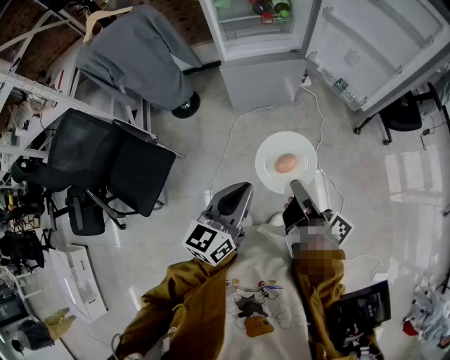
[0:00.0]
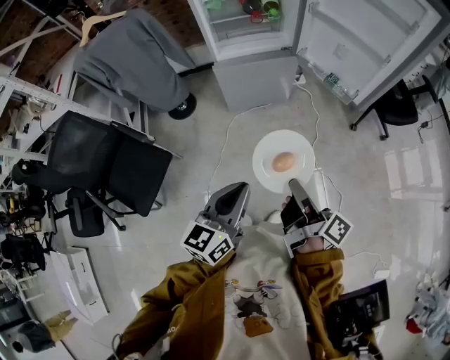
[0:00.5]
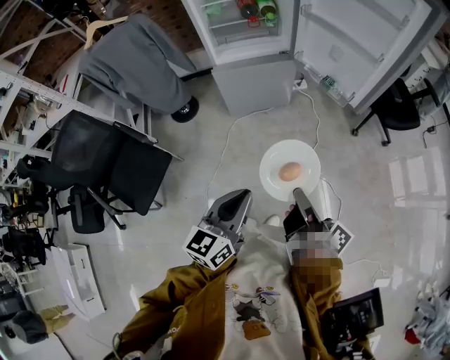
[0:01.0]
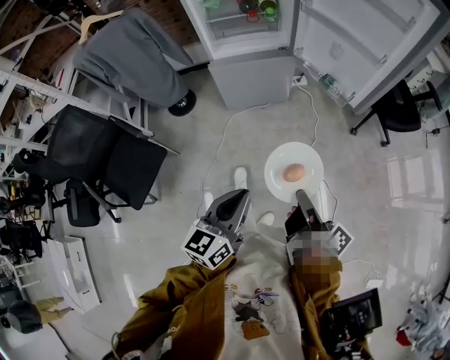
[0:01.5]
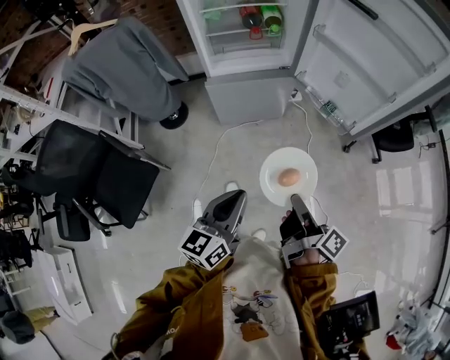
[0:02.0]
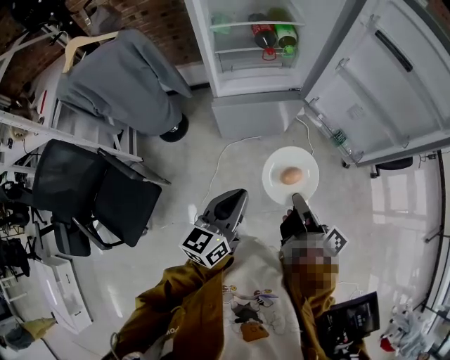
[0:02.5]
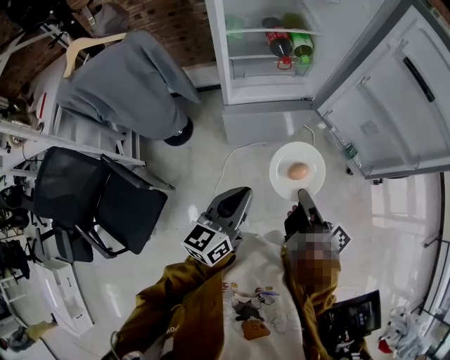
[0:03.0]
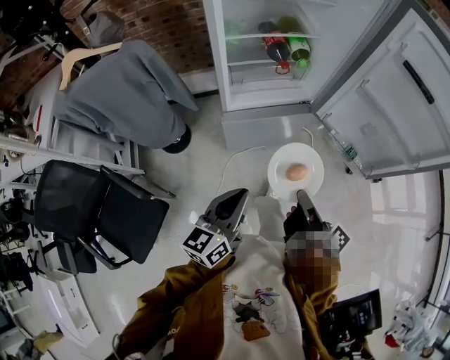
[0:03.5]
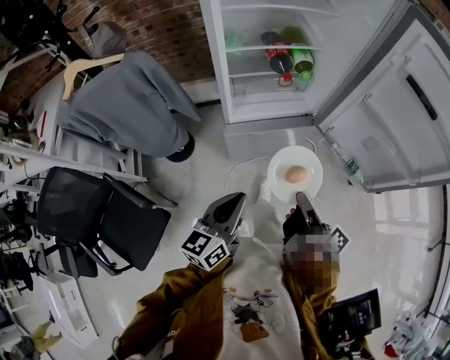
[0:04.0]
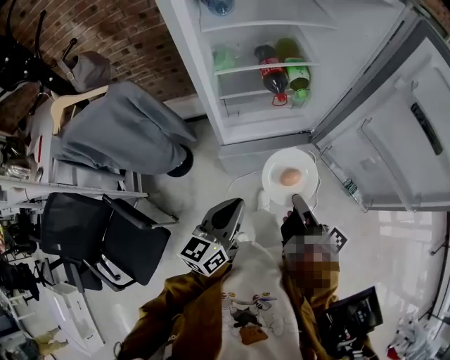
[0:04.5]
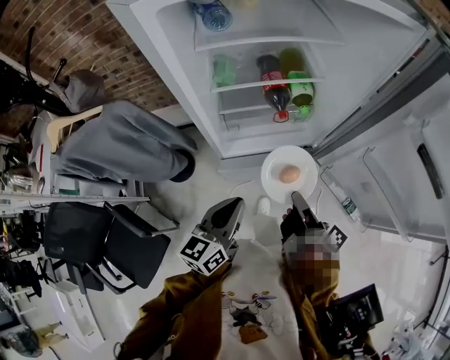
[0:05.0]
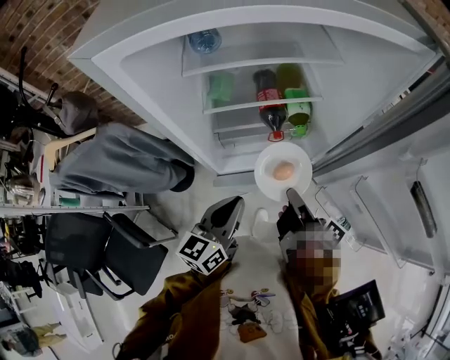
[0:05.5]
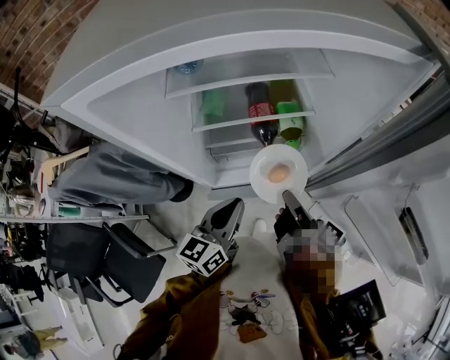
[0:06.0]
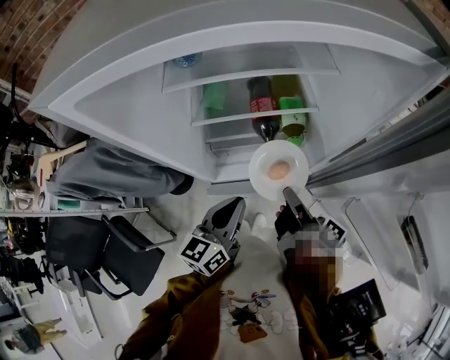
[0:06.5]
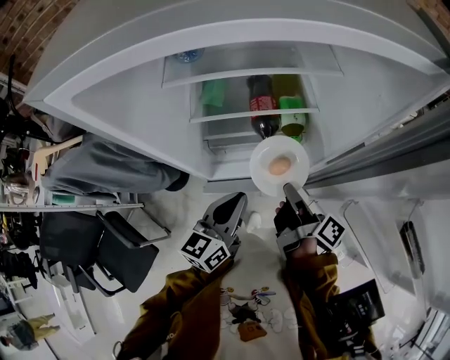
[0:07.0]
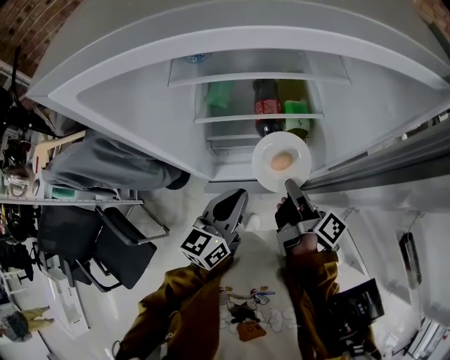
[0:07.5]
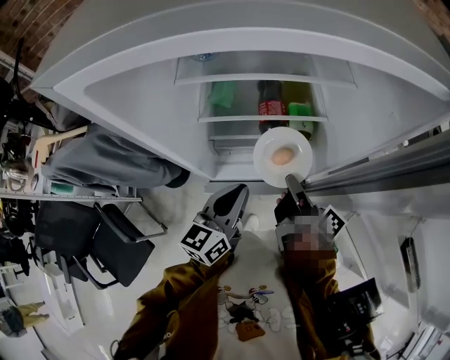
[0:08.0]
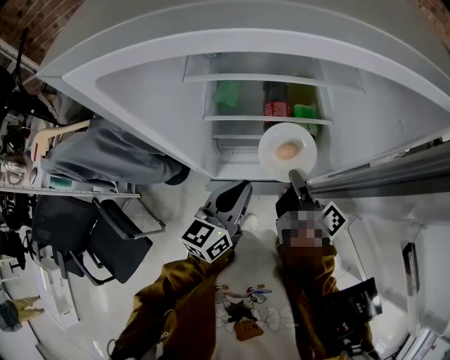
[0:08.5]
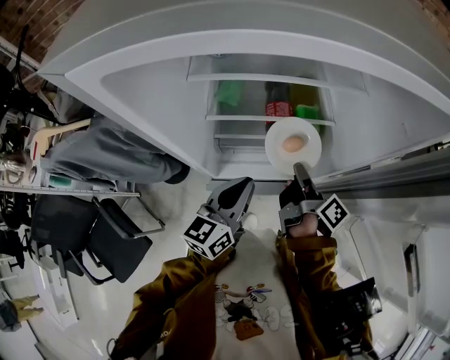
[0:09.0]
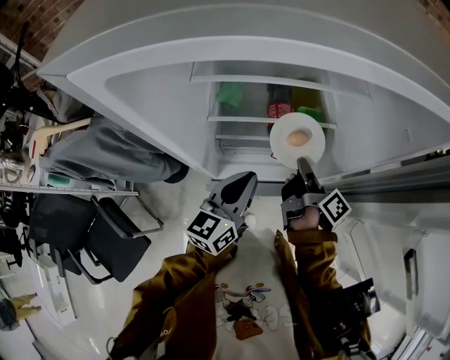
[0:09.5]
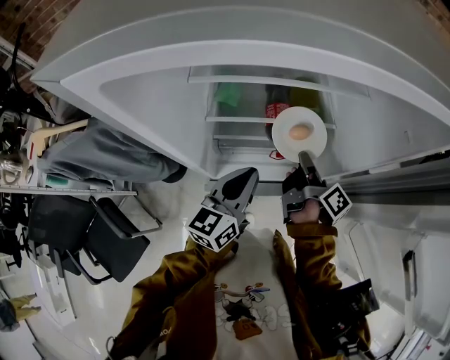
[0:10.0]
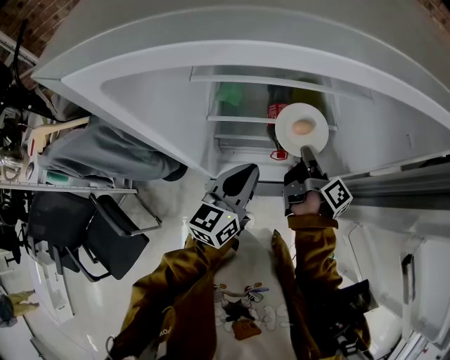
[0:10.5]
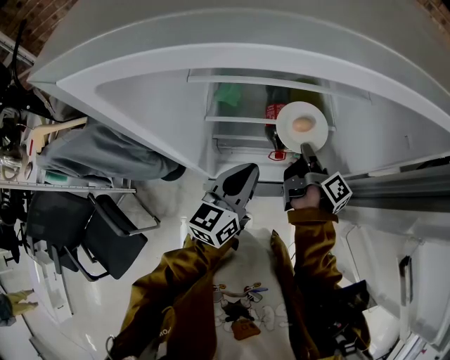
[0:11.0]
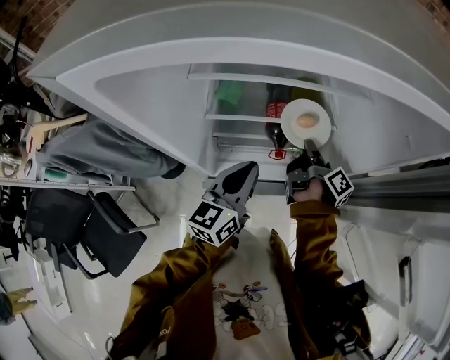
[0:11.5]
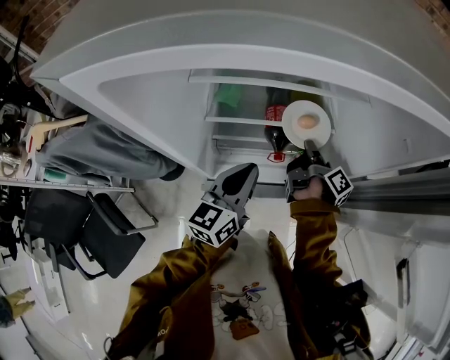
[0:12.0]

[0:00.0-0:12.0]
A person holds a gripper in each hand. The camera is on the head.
0:00.0 to 0:02.0: The left gripper changes place by roughly 10 cm.
0:02.0 to 0:04.0: The left gripper moves roughly 30 cm.
0:04.0 to 0:06.0: The left gripper changes place by some 30 cm.

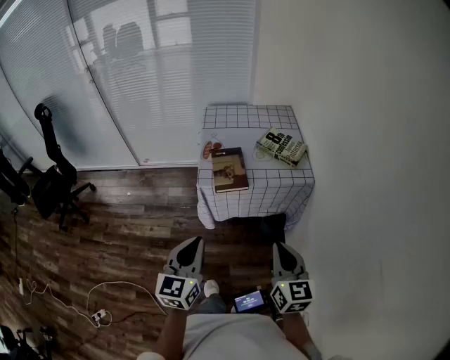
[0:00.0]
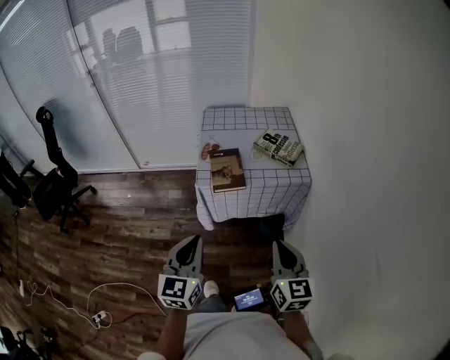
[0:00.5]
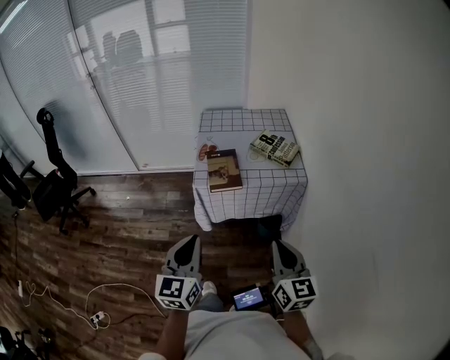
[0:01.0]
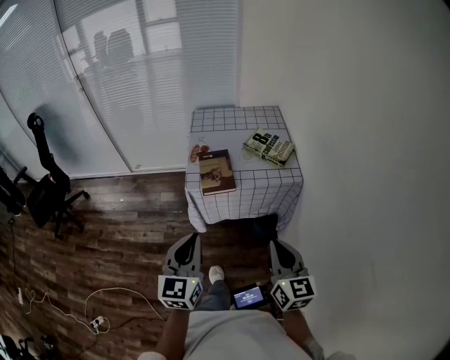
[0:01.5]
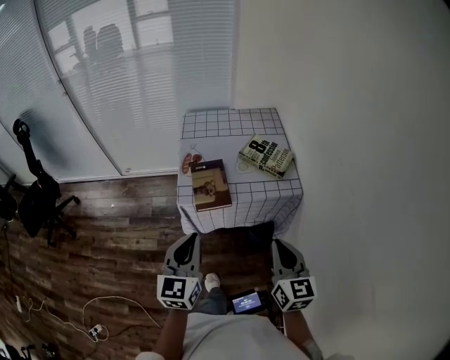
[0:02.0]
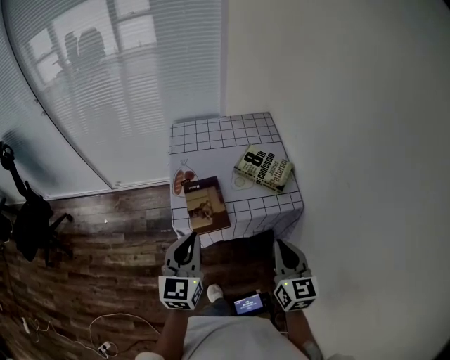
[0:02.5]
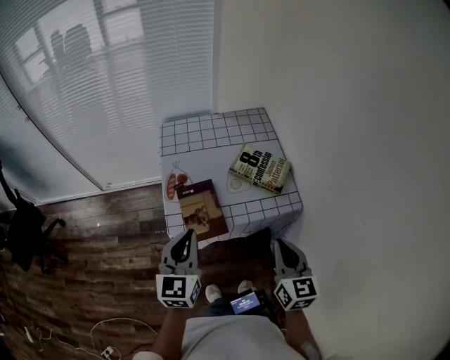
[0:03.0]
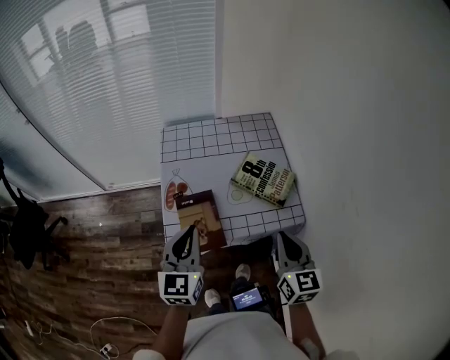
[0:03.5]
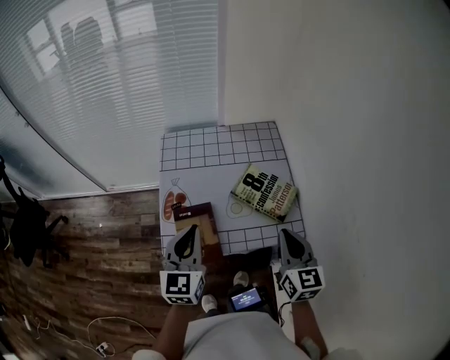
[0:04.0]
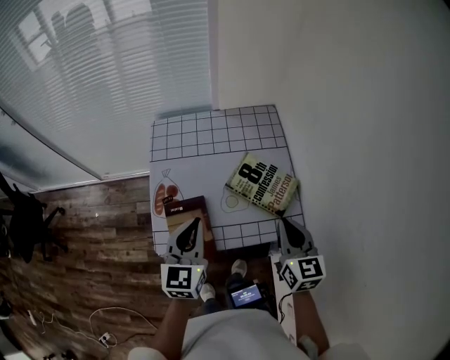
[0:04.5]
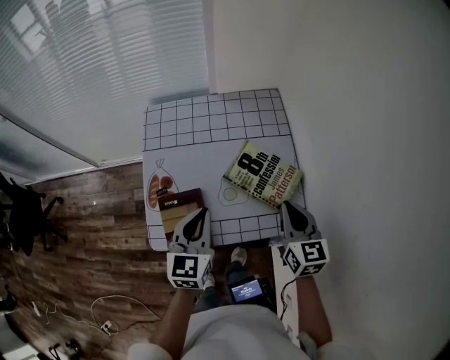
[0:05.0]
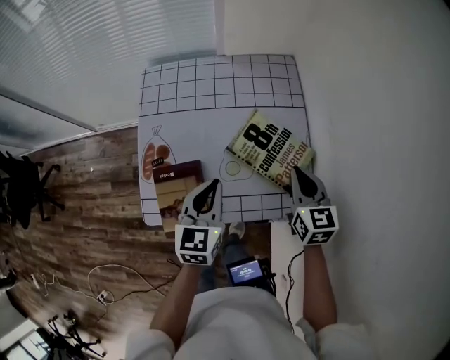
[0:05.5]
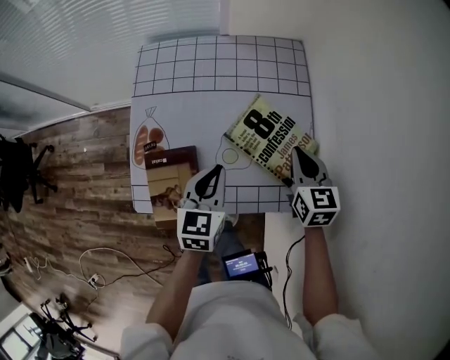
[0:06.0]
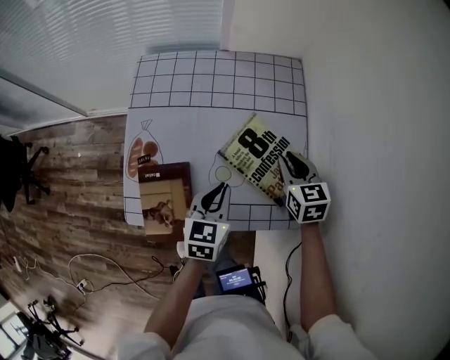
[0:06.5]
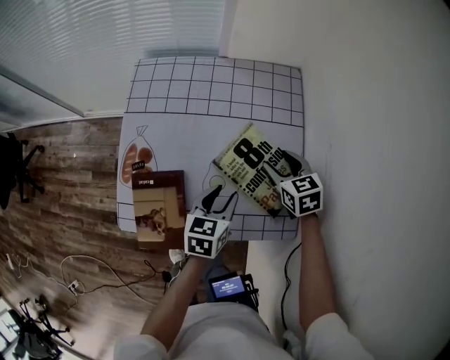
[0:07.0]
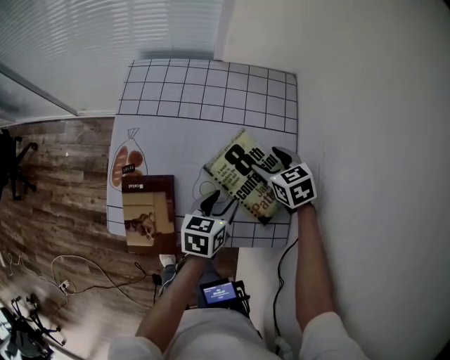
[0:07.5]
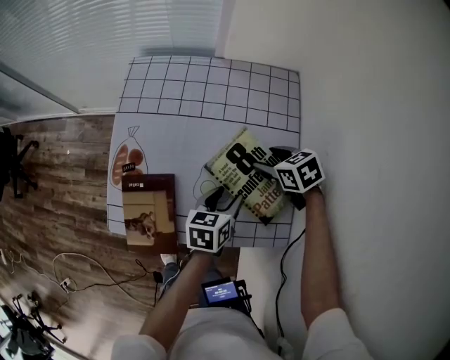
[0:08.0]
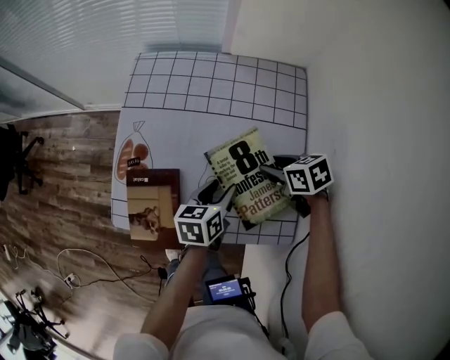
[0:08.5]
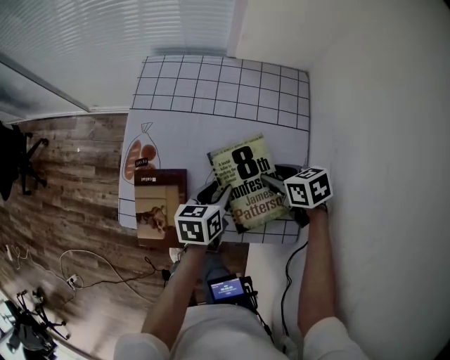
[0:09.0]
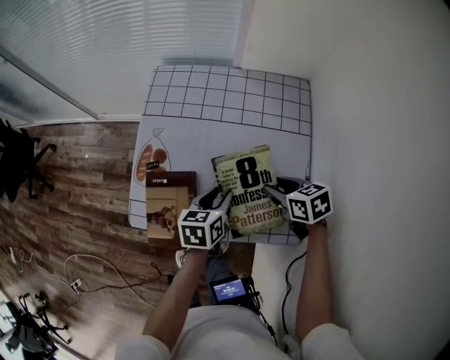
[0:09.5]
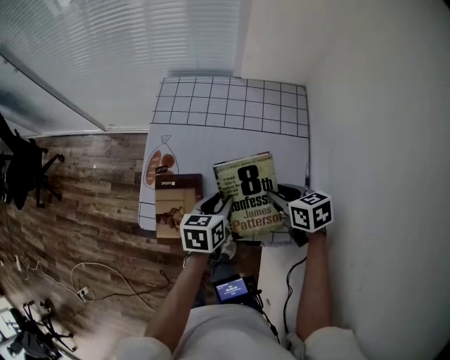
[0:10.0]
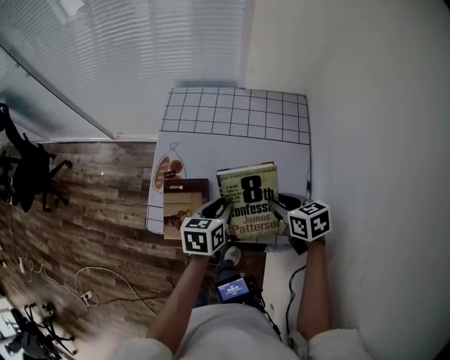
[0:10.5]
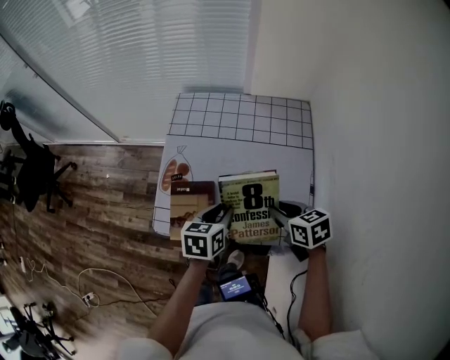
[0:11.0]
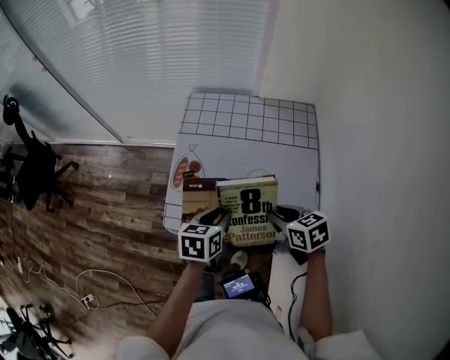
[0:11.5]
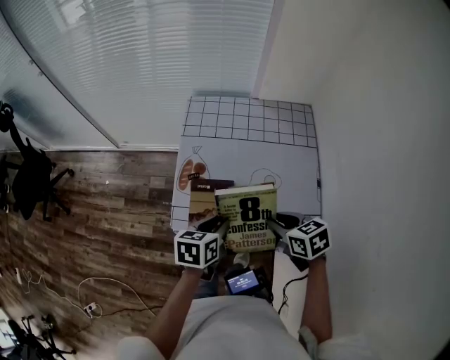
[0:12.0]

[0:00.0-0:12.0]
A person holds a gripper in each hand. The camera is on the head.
0:00.0 to 0:02.0: The two grippers go about 10 cm forward.
0:02.0 to 0:04.0: Both grippers travel together forward, approximately 30 cm.
0:04.0 to 0:06.0: The left gripper travels downward, to the right and forward by about 20 cm, and changes its angle by roughly 20 degrees, while the right gripper shifts approximately 25 cm forward and downward.
0:06.0 to 0:08.0: The left gripper is displaced to the right and downward by roughly 15 cm, rotates approximately 30 degrees, and opens its fingers, while the right gripper moves downward and forward, roughly 15 cm, swivels about 40 degrees, and opens.
0:08.0 to 0:10.0: The right gripper goes some 15 cm backward, upward and to the left, and closes up. The left gripper is displaced to the left and upward by approximately 10 cm.
0:10.0 to 0:12.0: The grippers both shift to the left, backward and upward by about 15 cm.

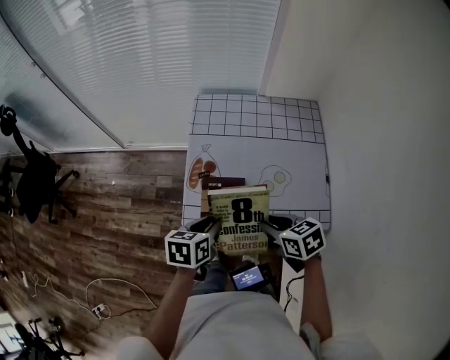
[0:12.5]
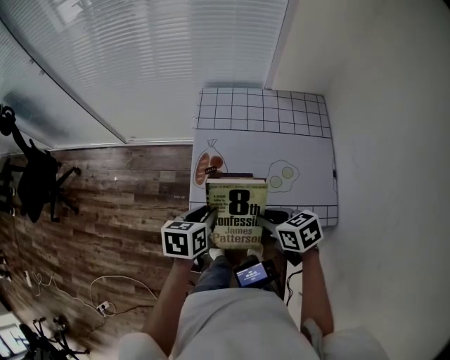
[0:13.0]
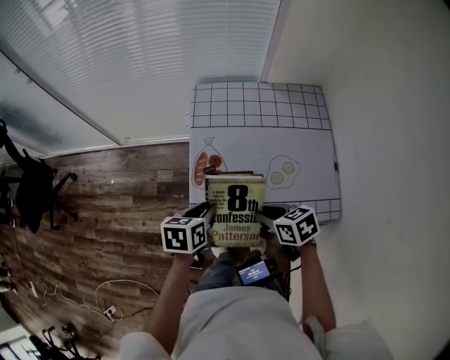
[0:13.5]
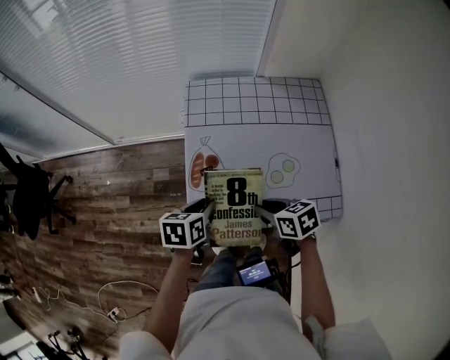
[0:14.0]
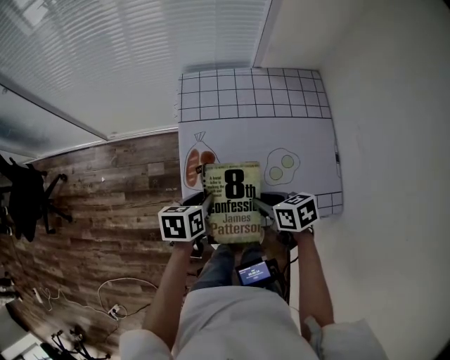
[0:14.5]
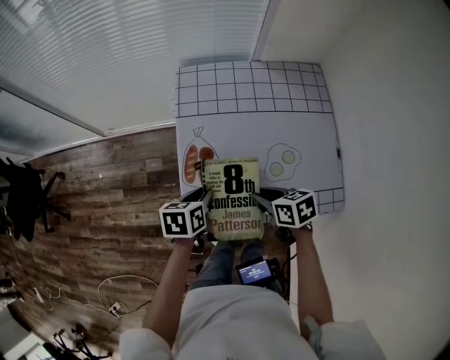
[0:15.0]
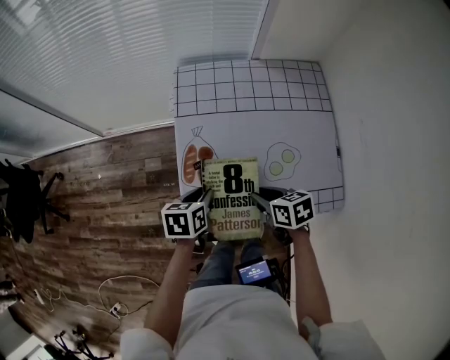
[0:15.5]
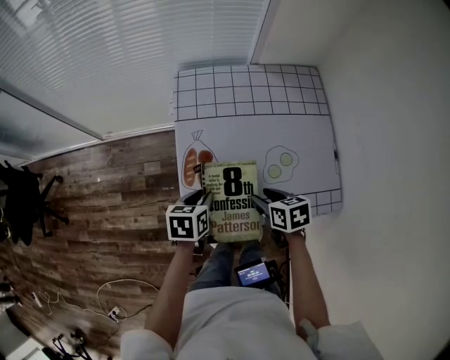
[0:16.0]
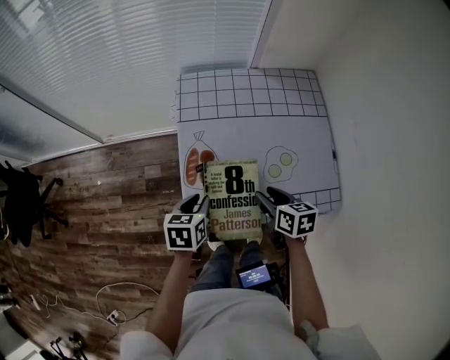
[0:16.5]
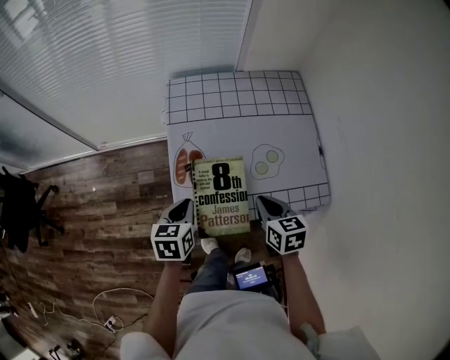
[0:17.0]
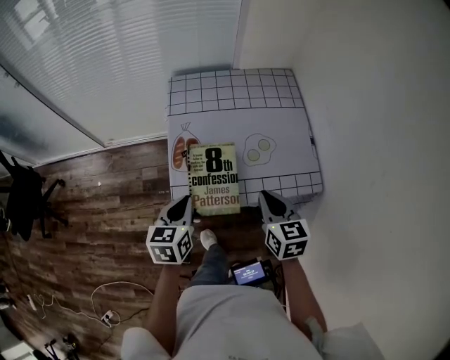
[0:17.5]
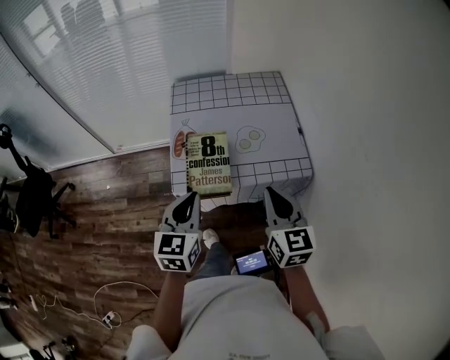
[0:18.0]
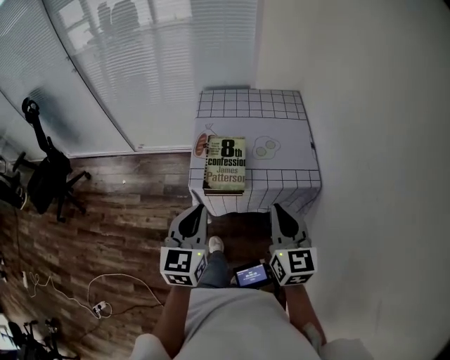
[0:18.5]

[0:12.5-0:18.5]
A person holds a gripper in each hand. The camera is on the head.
0:12.5 to 0:14.5: The left gripper moves forward and downward, roughly 10 cm; the right gripper goes roughly 10 cm downward and forward.
0:14.5 to 0:16.5: The right gripper swivels about 20 degrees.
0:16.5 to 0:18.5: Both grippers travel together backward and upward, approximately 35 cm. The left gripper points its fingers about 30 degrees further upward, and closes its fingers, while the right gripper points its fingers roughly 30 degrees further upward, and closes.
